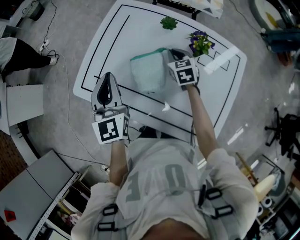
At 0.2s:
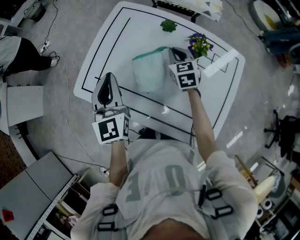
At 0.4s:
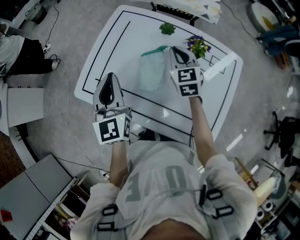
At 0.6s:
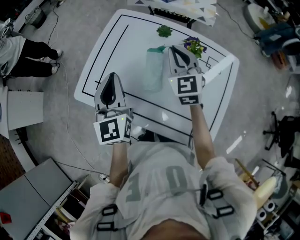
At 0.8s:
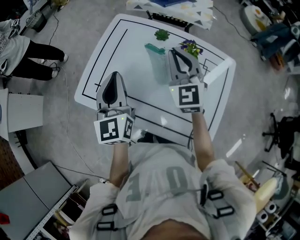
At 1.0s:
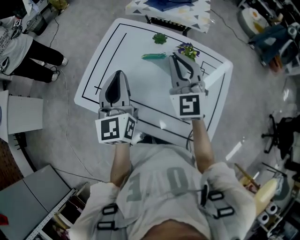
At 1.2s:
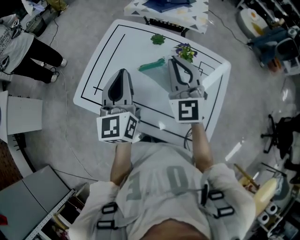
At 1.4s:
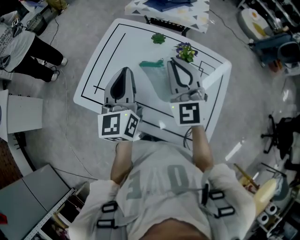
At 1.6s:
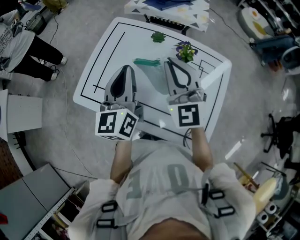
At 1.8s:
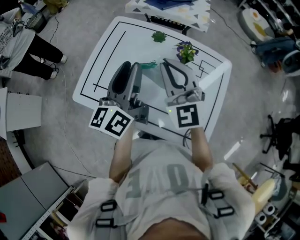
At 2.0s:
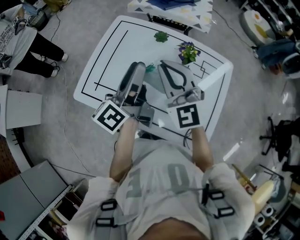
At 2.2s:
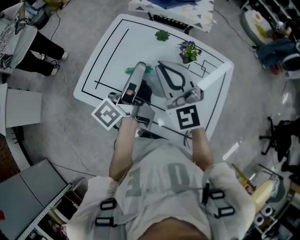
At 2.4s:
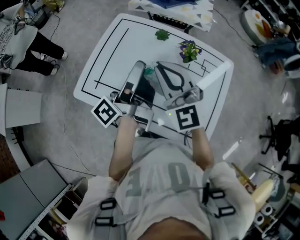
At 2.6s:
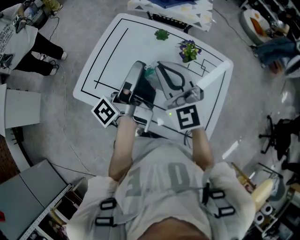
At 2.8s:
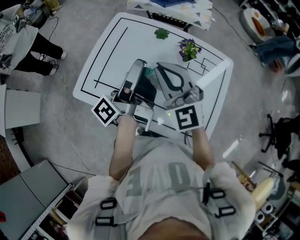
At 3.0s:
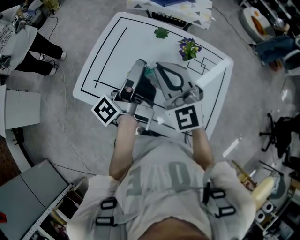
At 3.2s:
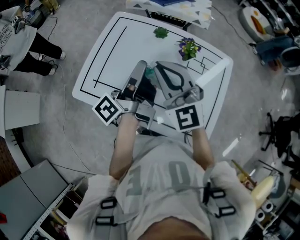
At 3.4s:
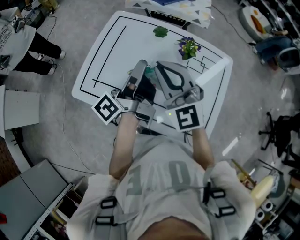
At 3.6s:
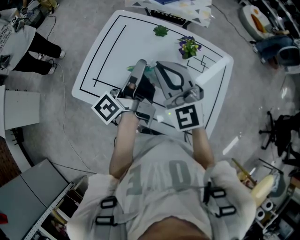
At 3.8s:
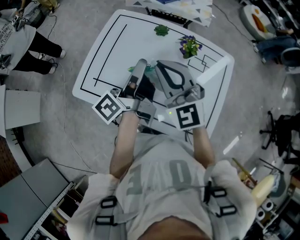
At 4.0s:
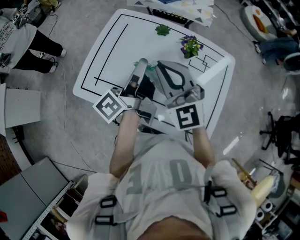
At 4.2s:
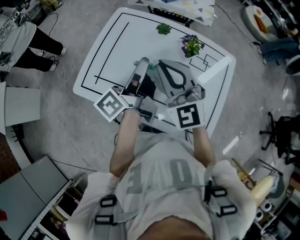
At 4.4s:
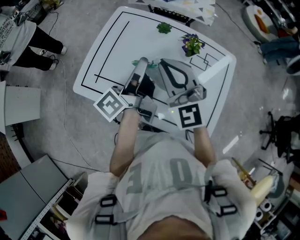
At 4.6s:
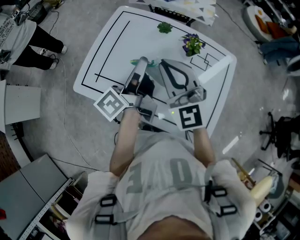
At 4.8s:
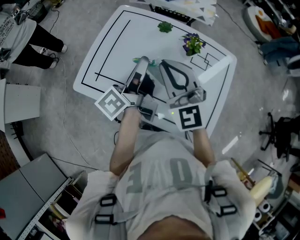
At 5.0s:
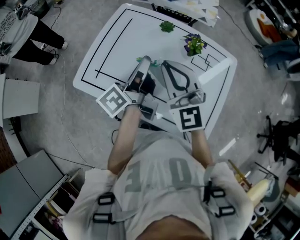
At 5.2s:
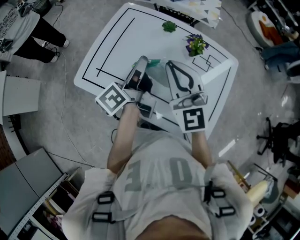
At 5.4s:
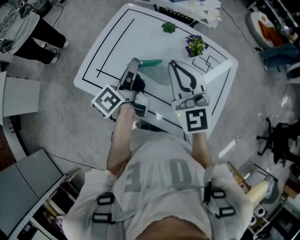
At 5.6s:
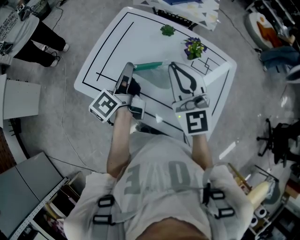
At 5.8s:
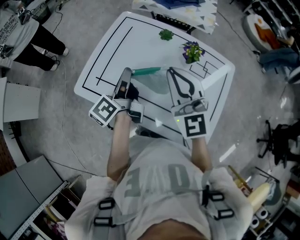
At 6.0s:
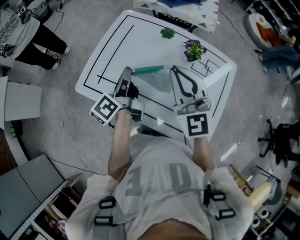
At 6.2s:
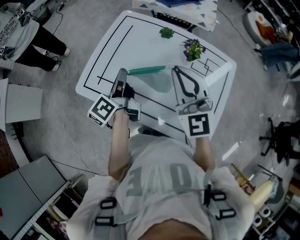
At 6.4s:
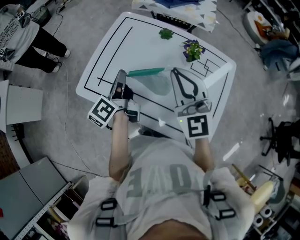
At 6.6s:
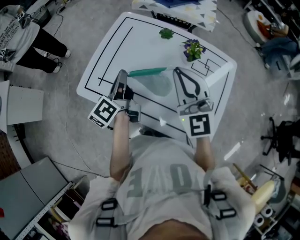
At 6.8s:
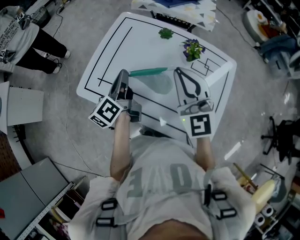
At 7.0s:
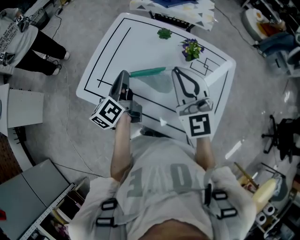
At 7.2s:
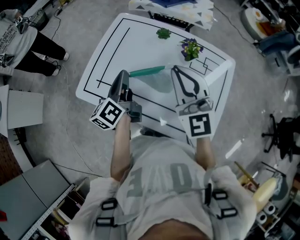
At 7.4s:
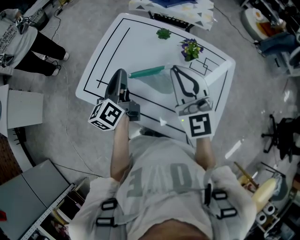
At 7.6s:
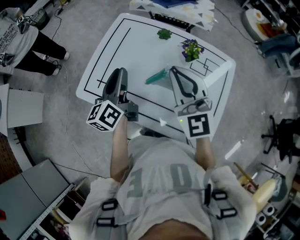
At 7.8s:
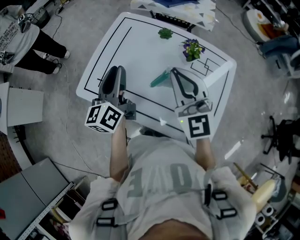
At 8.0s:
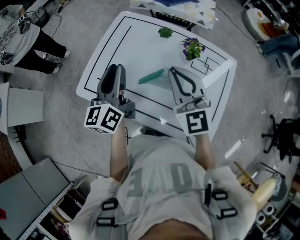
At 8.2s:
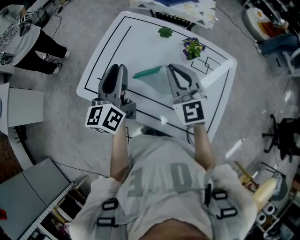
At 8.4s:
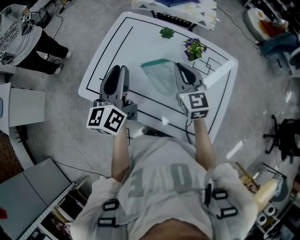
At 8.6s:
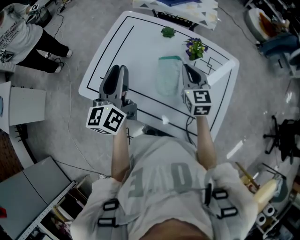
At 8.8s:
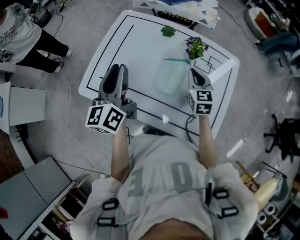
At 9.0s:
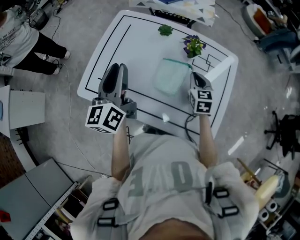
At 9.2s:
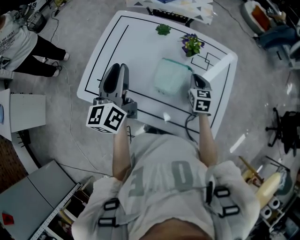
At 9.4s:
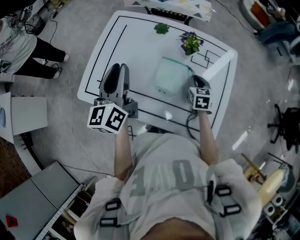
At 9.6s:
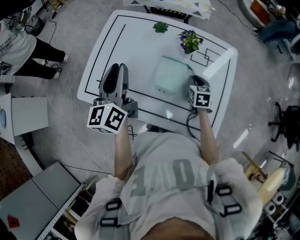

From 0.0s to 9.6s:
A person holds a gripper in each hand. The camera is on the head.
From 0.0s to 1.6s: The right gripper shifts roughly 30 cm upward and backward, and angles its fingers upward, by roughly 40 degrees; the left gripper moves to the right and upward, about 10 cm, and turns by roughly 30 degrees.
From 1.6s to 3.2s: The left gripper rotates around the line of its fingers by about 70 degrees, counterclockwise from behind, and opens and closes again; the right gripper ends up approximately 5 cm from where it was.
From 3.2s to 4.8s: The grippers move only a little.
From 4.8s to 6.4s: The left gripper is displaced to the left and downward by about 10 cm, and changes its angle by roughly 20 degrees.
From 6.4s to 8.0s: The left gripper travels upward by roughly 5 cm, rotates roughly 40 degrees, and opens its fingers.
From 8.0s to 9.6s: The right gripper travels downward and to the right by roughly 35 cm, and tips its fingers downward by some 40 degrees.

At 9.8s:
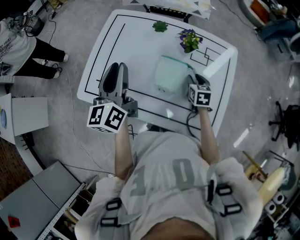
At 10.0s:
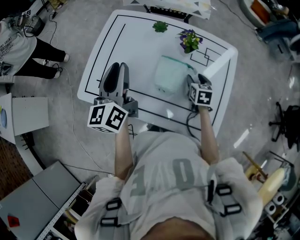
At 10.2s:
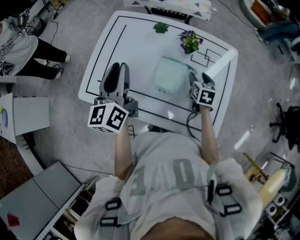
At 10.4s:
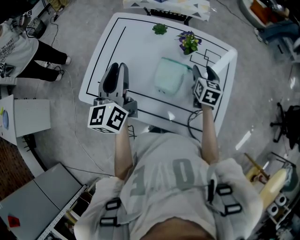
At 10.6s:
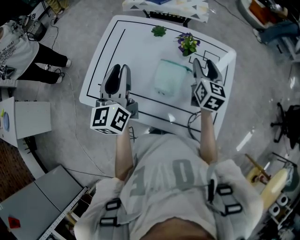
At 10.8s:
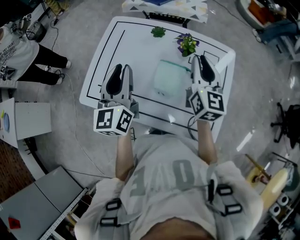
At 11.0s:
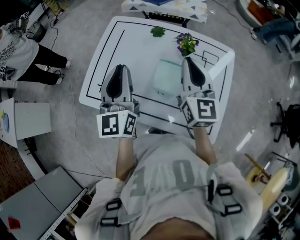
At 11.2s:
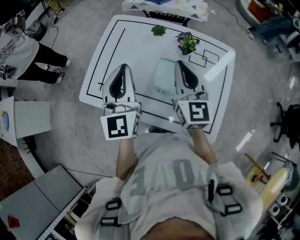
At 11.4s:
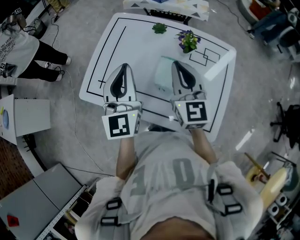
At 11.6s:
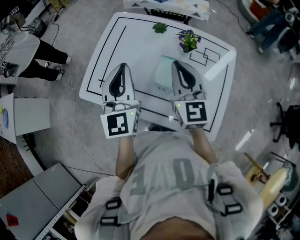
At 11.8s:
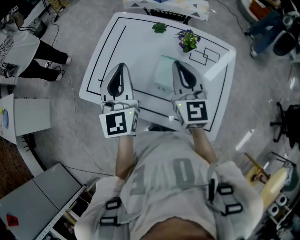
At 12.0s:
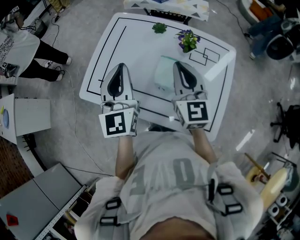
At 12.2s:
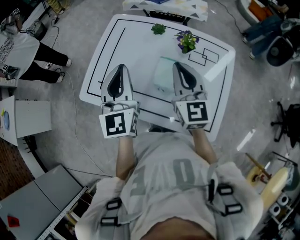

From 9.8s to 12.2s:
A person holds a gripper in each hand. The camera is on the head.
From 9.8s to 11.0s: The left gripper shifts by roughly 5 cm, and changes its angle by some 20 degrees. The right gripper goes about 25 cm upward, tips its fingers upward by some 40 degrees, and closes its fingers.
From 11.0s to 12.2s: The grippers make only small movements.

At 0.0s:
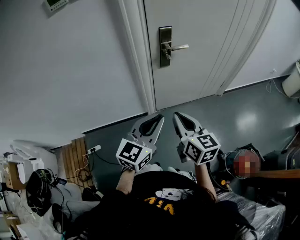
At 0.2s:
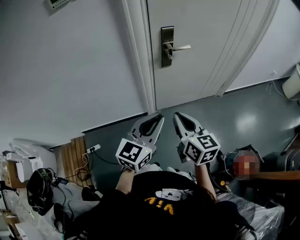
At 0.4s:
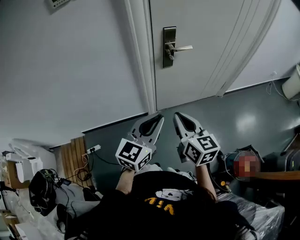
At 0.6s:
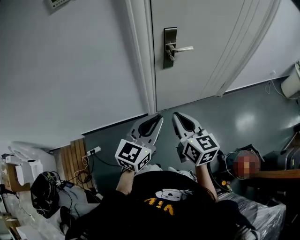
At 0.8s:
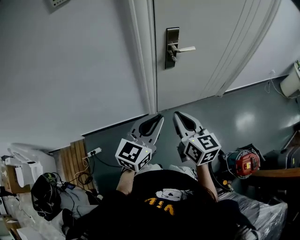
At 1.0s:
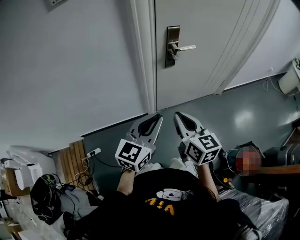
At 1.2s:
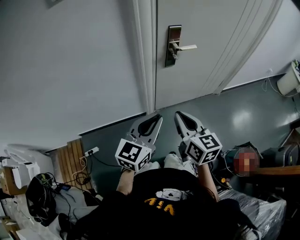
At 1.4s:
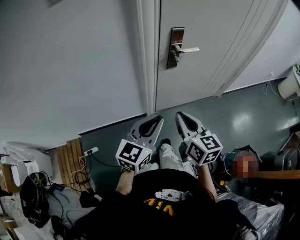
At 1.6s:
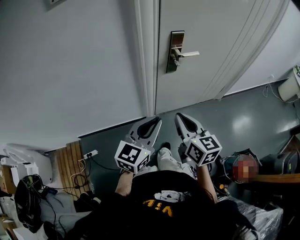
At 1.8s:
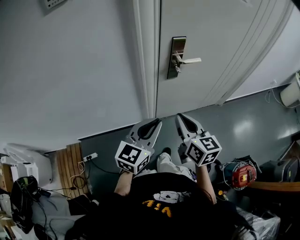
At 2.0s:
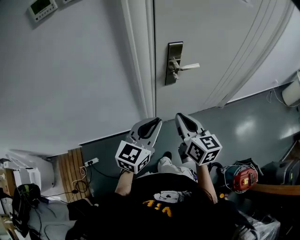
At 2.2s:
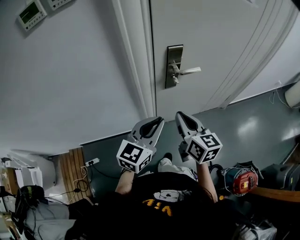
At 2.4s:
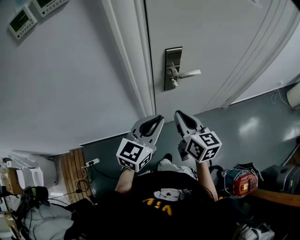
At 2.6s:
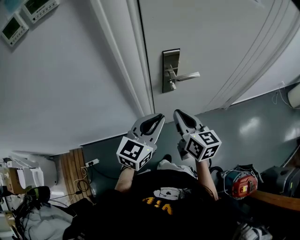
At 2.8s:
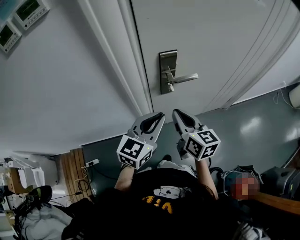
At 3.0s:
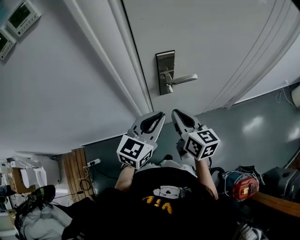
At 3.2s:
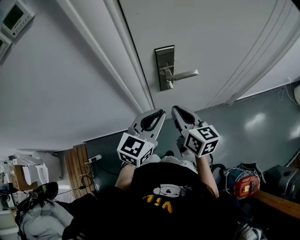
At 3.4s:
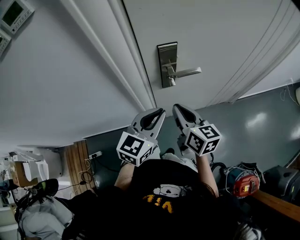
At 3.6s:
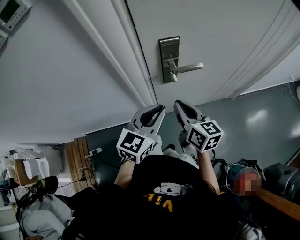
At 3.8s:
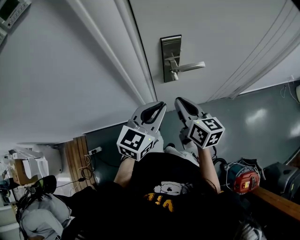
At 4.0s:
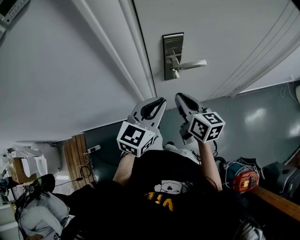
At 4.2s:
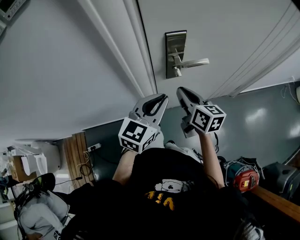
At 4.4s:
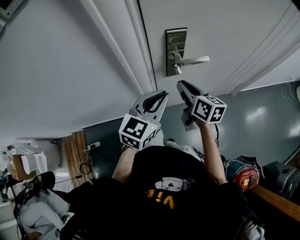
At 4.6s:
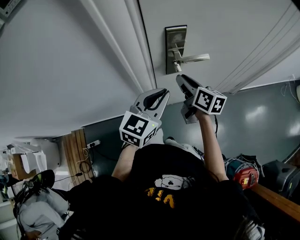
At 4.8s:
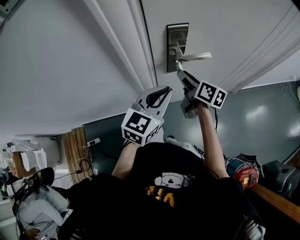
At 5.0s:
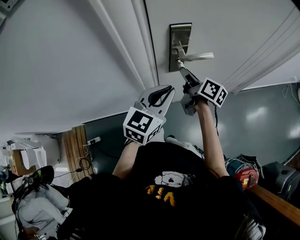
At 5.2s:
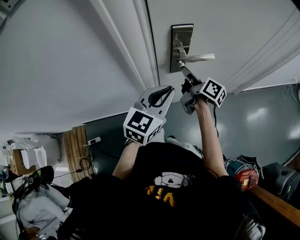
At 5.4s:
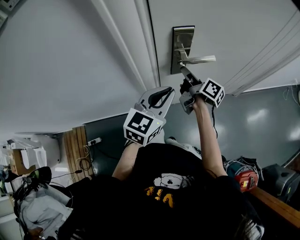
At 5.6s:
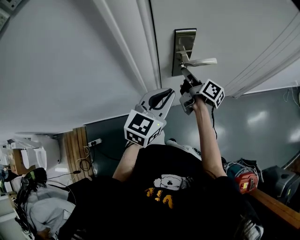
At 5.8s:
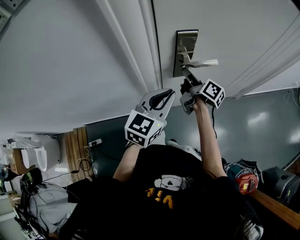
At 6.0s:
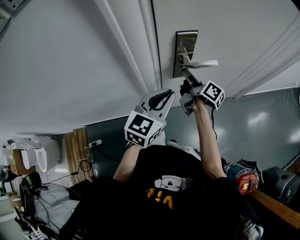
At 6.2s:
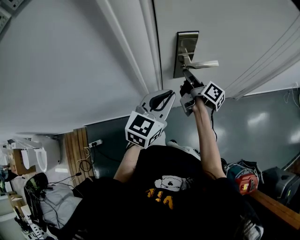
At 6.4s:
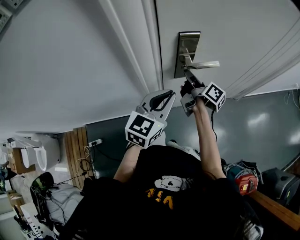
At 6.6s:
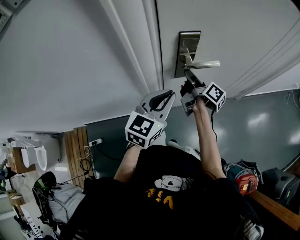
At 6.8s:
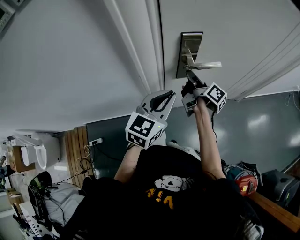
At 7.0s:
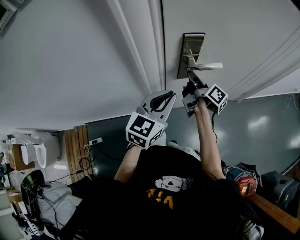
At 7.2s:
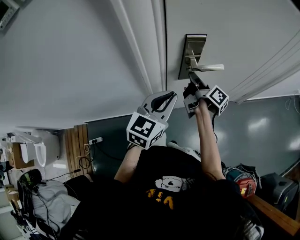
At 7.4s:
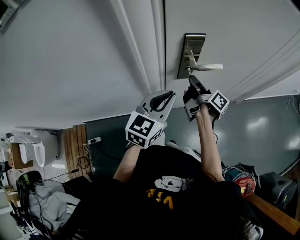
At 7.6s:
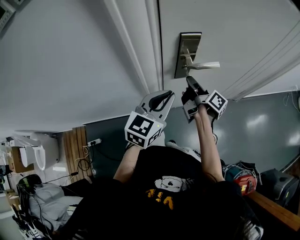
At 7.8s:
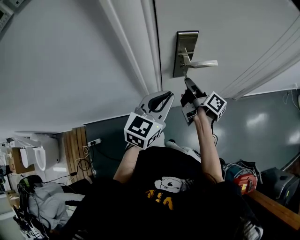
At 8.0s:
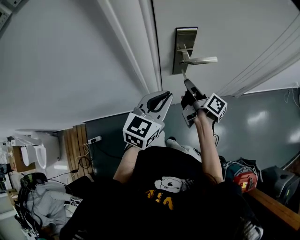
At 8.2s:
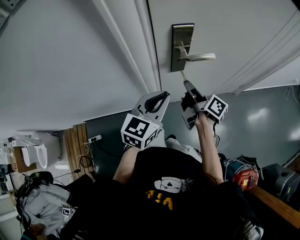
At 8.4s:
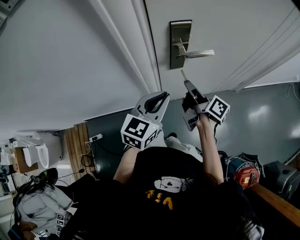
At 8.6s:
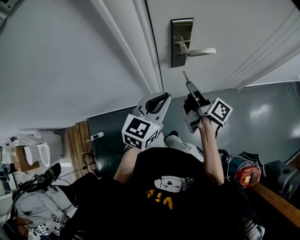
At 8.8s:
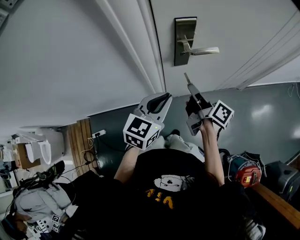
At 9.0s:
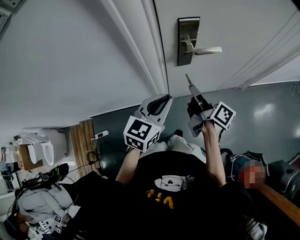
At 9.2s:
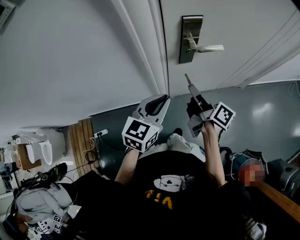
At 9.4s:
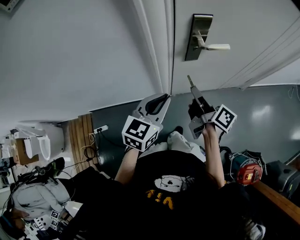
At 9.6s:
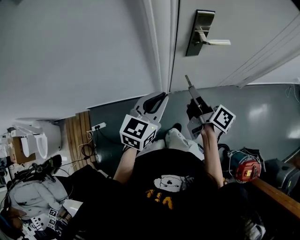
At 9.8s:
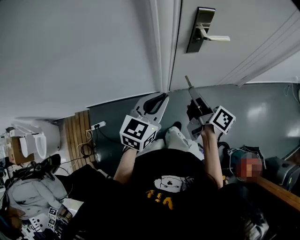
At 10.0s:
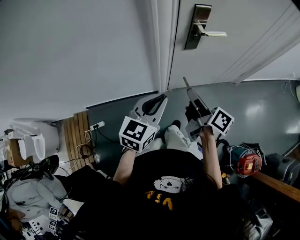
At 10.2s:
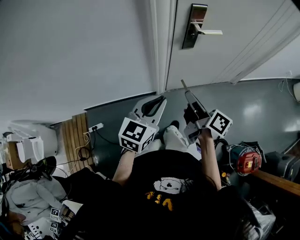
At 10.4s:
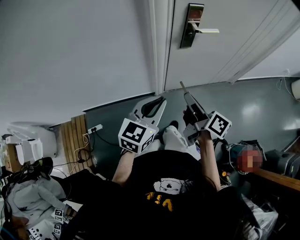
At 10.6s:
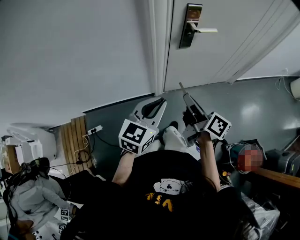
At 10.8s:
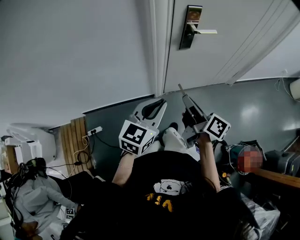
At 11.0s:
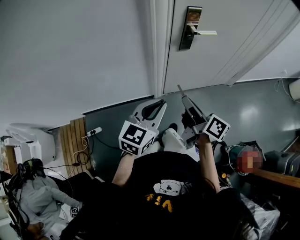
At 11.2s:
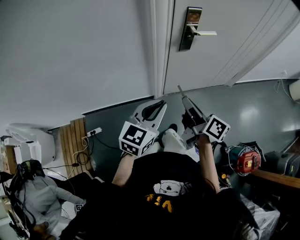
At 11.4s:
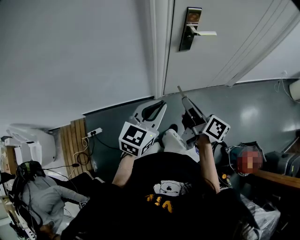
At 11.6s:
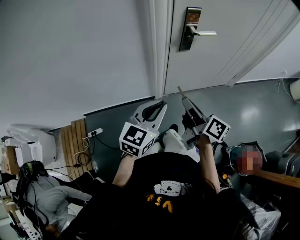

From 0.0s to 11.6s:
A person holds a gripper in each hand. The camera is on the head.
From 0.0s to 1.4s: The grippers both shift to the left by approximately 5 cm.
From 1.4s to 2.8s: The two grippers go about 25 cm forward.
From 2.8s to 4.4s: The right gripper moves forward and downward, roughly 10 cm.
From 4.4s to 5.8s: The right gripper goes roughly 10 cm forward, and rotates some 40 degrees.
From 5.8s to 7.2s: There are only small adjustments of the grippers.
From 7.2s to 8.8s: The right gripper moves backward, approximately 10 cm. Meanwhile the left gripper ends up approximately 5 cm from where it was.
From 8.8s to 10.2s: The two grippers go some 20 cm backward and to the left.
From 10.2s to 11.6s: The right gripper is displaced backward by about 5 cm.
